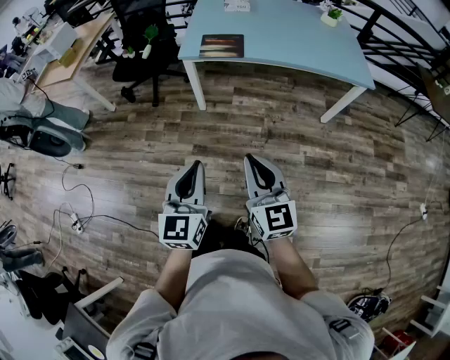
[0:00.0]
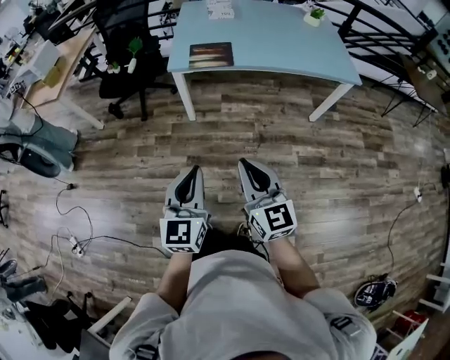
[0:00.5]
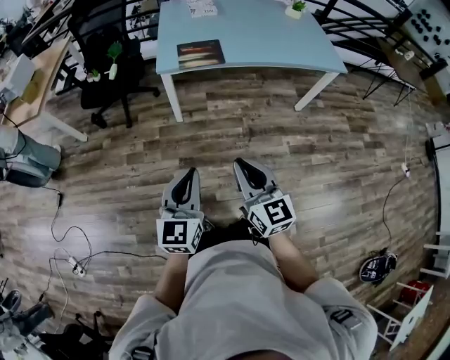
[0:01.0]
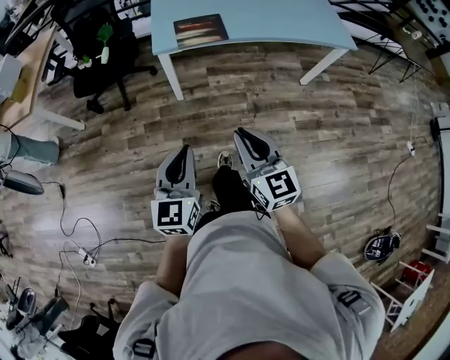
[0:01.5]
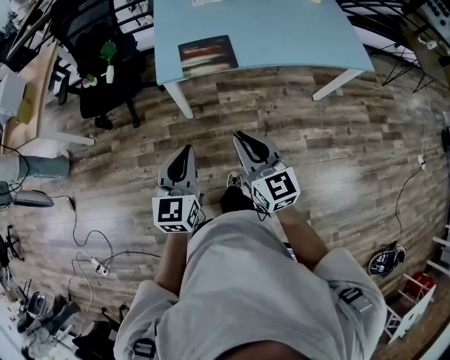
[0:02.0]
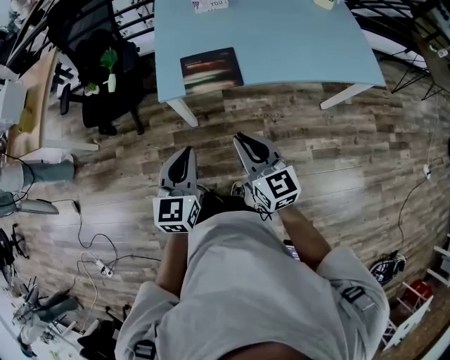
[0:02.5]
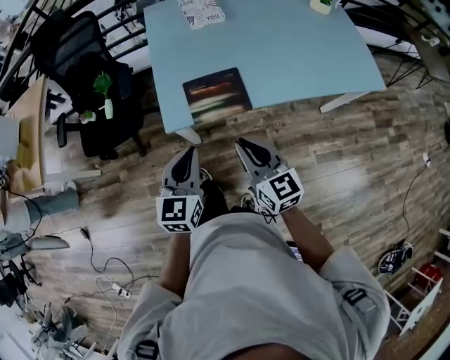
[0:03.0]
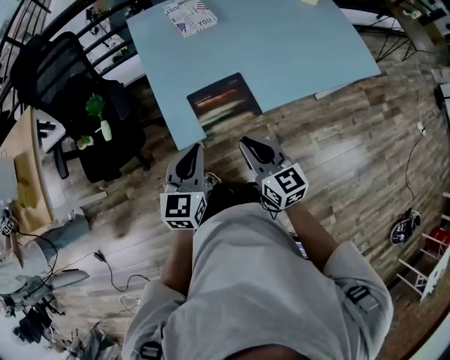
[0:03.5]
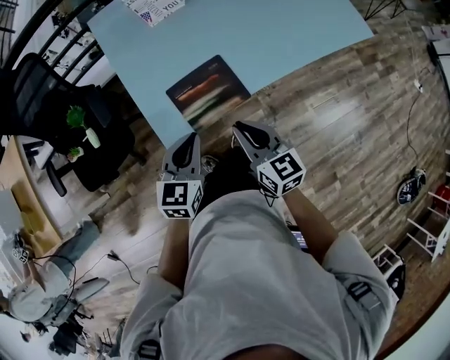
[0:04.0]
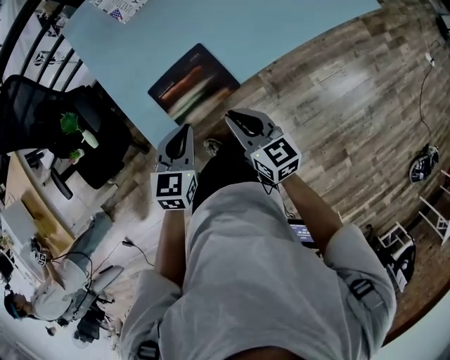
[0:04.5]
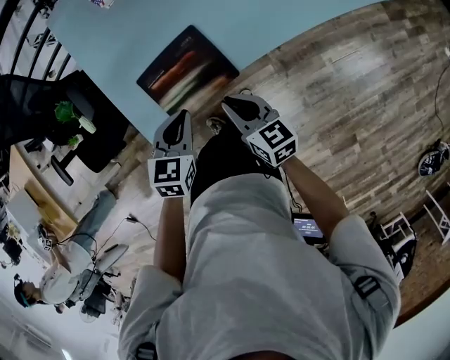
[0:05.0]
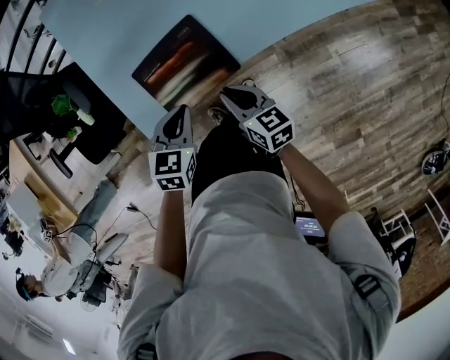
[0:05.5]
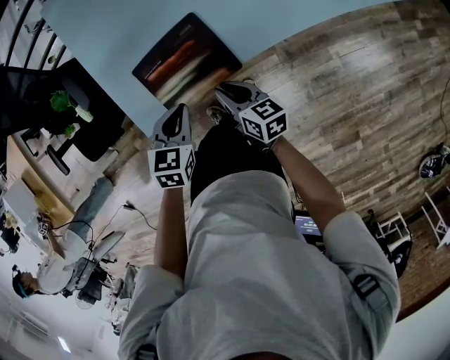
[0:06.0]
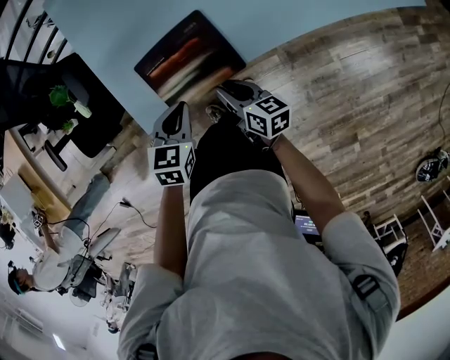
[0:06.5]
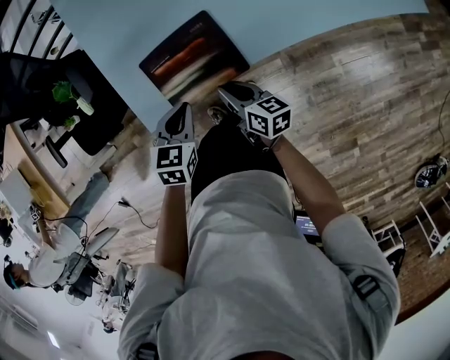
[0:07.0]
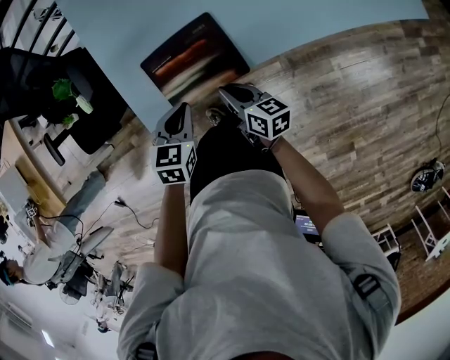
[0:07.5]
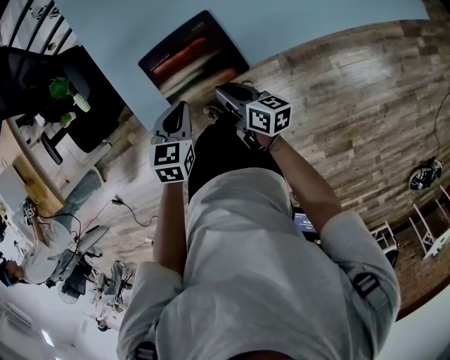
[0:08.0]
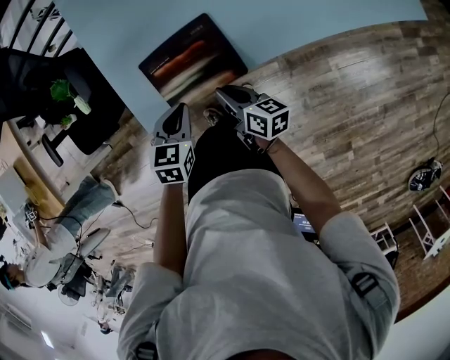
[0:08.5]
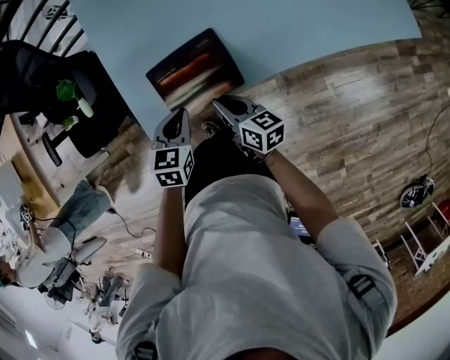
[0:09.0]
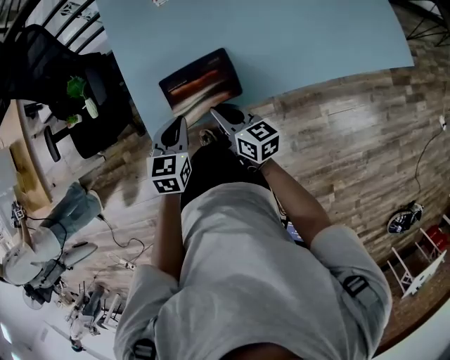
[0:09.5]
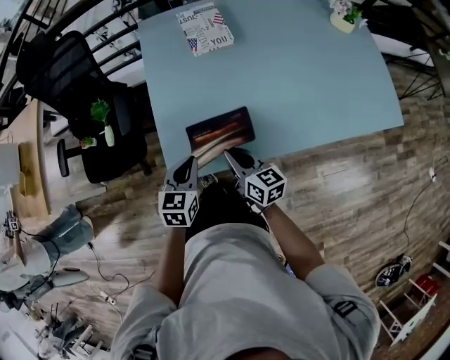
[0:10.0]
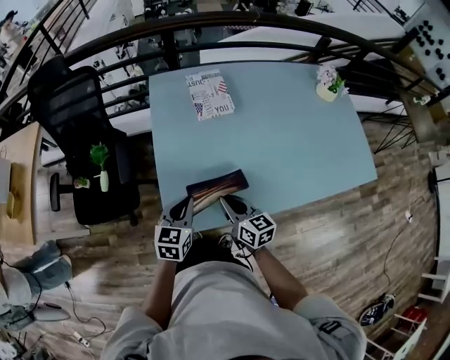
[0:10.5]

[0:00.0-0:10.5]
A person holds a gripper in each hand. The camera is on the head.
0:00.0 to 0:02.0: Both grippers move forward, approximately 30 cm.
0:02.0 to 0:04.0: Both grippers travel together forward, roughly 30 cm. The right gripper swivels roughly 20 degrees; the left gripper rotates approximately 30 degrees.
0:04.0 to 0:06.5: Both grippers travel together downward, approximately 20 cm. The right gripper swivels approximately 30 degrees; the left gripper changes its angle by about 20 degrees.
0:06.5 to 0:08.5: There are only small adjustments of the grippers.
0:08.5 to 0:10.5: The grippers both shift upward and forward by roughly 15 cm. The left gripper changes its angle by approximately 20 degrees. The right gripper swivels some 30 degrees.

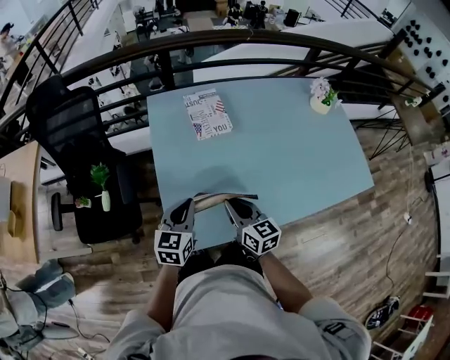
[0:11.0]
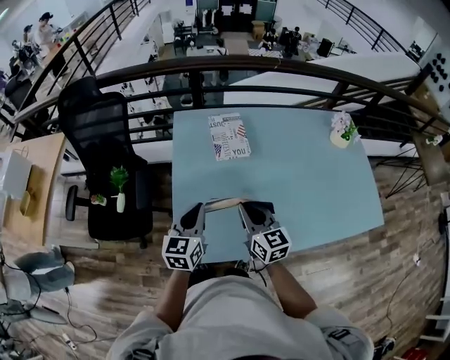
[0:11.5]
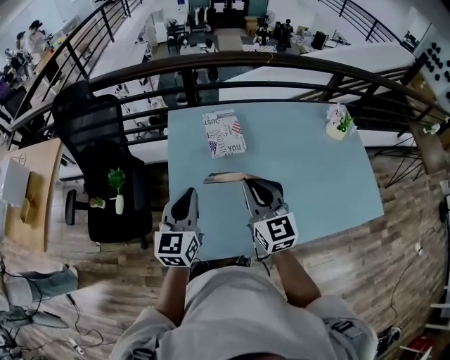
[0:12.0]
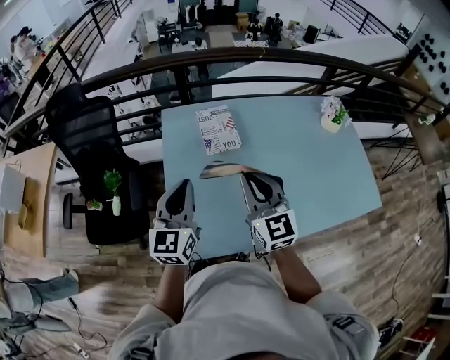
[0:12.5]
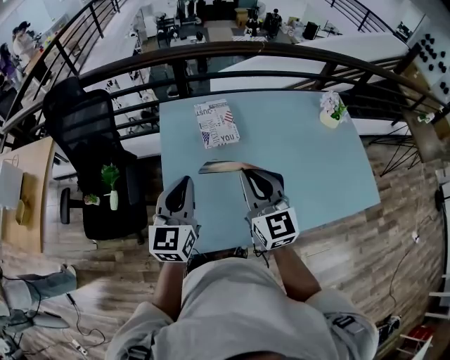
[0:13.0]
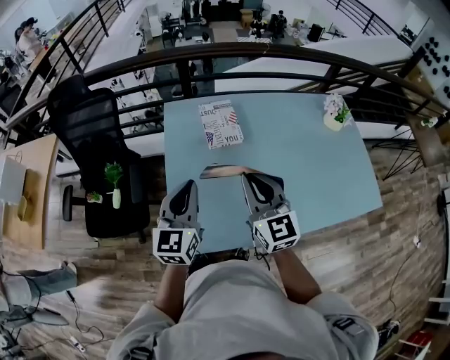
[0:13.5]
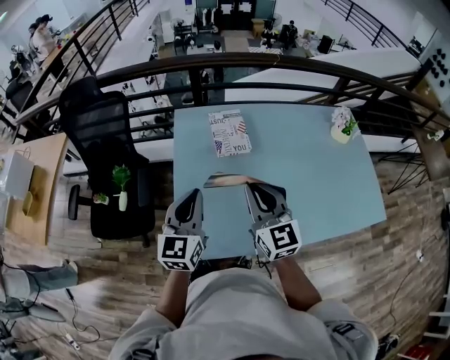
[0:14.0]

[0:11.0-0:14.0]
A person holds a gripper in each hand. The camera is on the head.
0:11.0 to 0:12.5: The two grippers go some 15 cm upward. The left gripper changes its angle by roughly 20 degrees. Meanwhile the right gripper swivels some 30 degrees.
0:12.5 to 0:14.0: There are only small adjustments of the grippers.

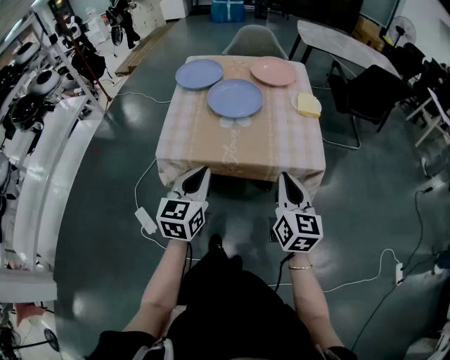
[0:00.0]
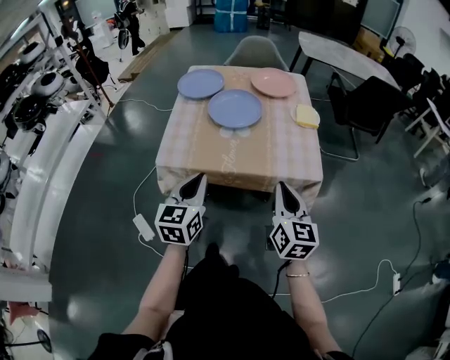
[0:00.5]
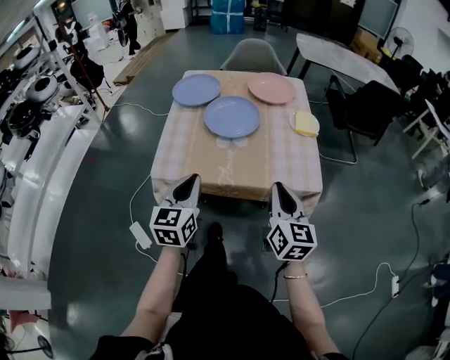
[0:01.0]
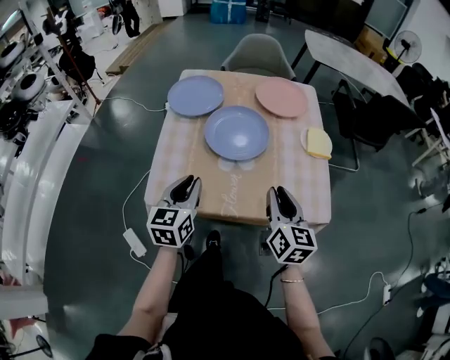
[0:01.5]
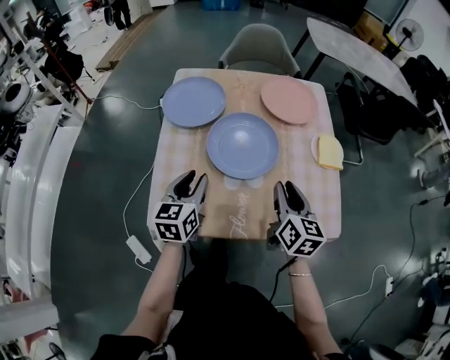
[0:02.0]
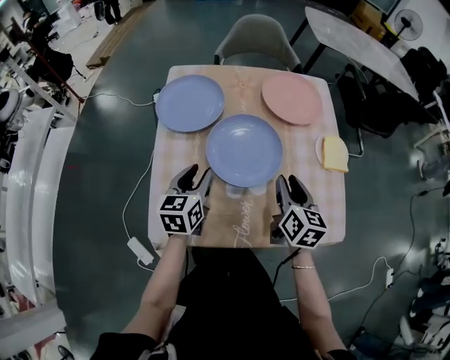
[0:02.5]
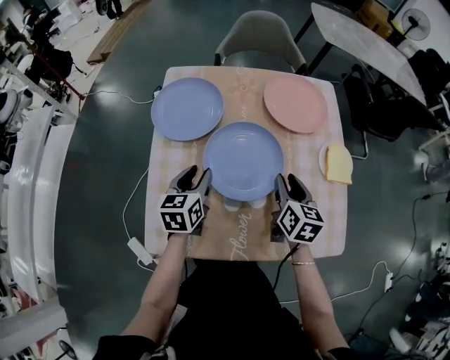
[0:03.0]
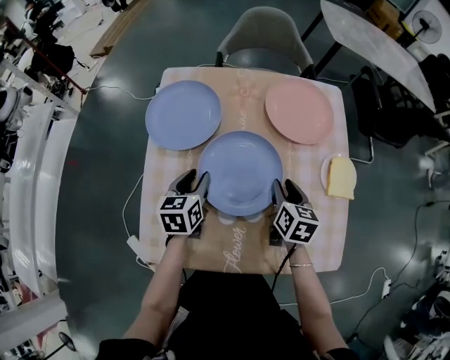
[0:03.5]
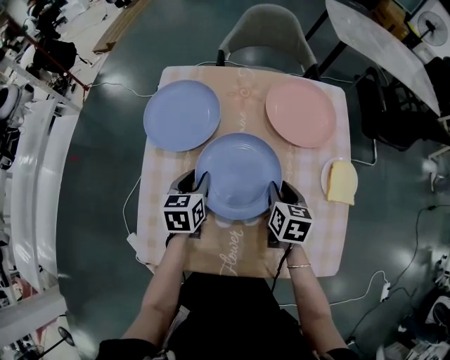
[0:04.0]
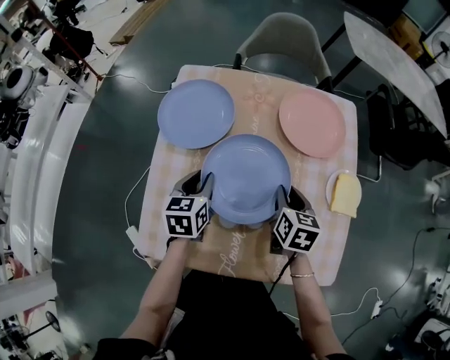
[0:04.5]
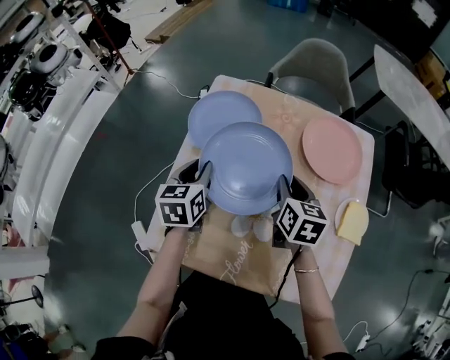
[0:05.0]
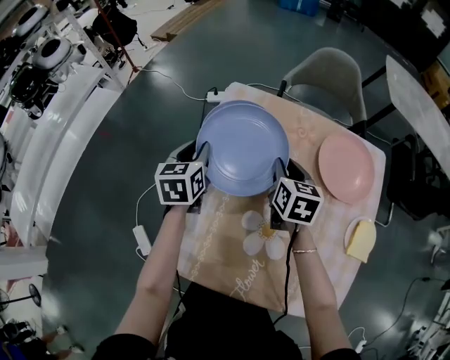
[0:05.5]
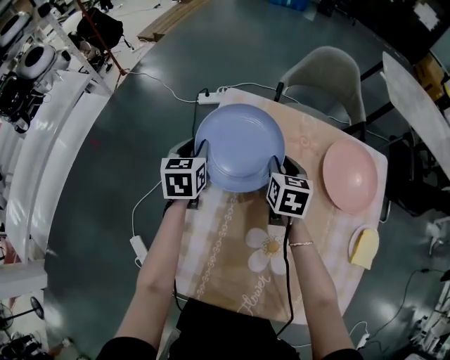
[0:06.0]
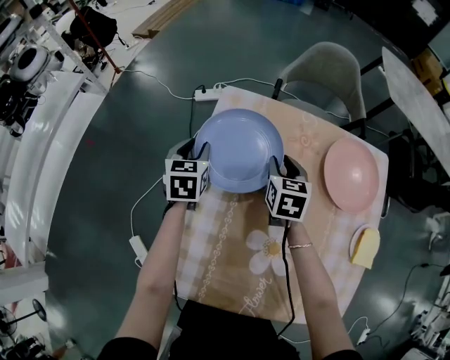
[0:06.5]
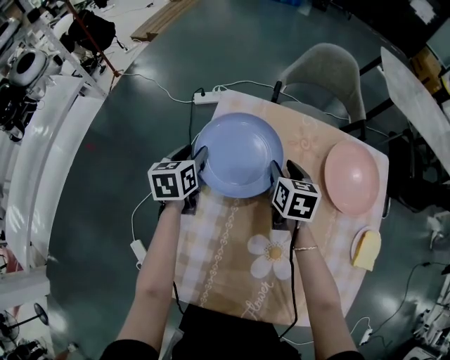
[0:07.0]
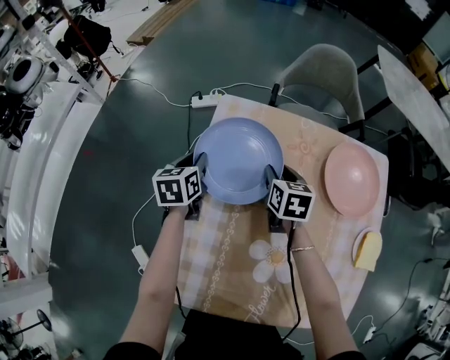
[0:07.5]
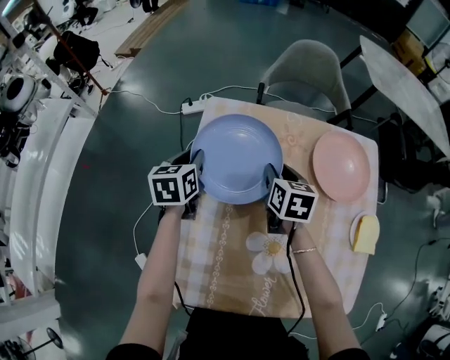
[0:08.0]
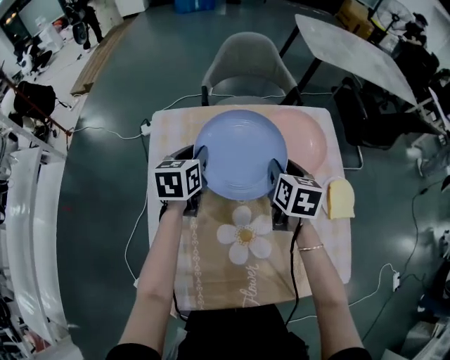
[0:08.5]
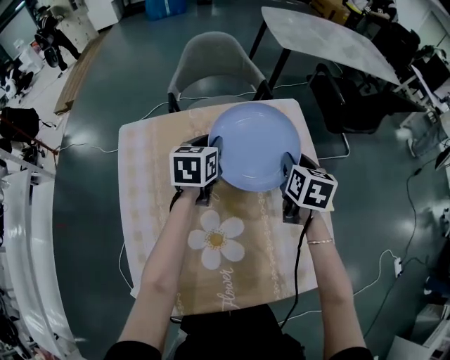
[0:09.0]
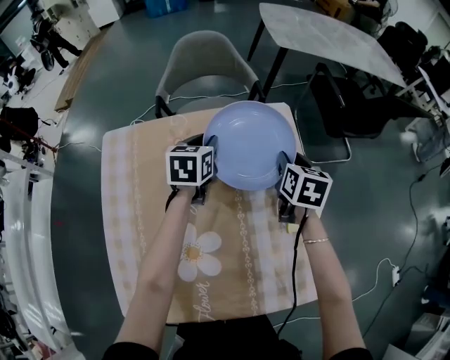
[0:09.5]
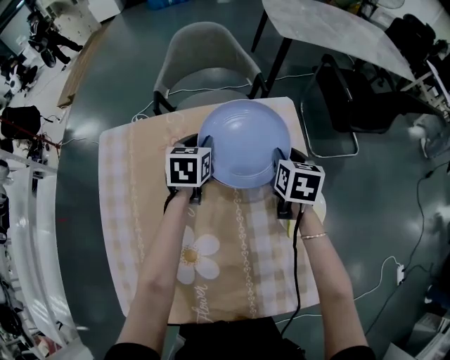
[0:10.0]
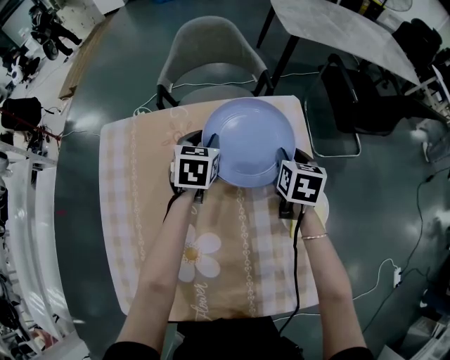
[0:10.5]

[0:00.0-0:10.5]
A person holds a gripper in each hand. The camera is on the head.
0:00.0 to 0:02.0: Both grippers move forward, approximately 25 cm. The right gripper opens its fingers. The left gripper opens its fingers.
0:02.0 to 0:04.0: The grippers both shift forward and downward by some 20 cm. The right gripper changes its angle by roughly 20 degrees.
0:04.0 to 0:06.5: Both grippers travel together forward and to the left, approximately 25 cm.
0:06.5 to 0:08.5: Both grippers travel together to the right, approximately 15 cm. The right gripper turns by some 20 degrees. The left gripper changes its angle by some 30 degrees.
0:08.5 to 0:10.5: Both grippers travel together to the right and forward, about 25 cm.

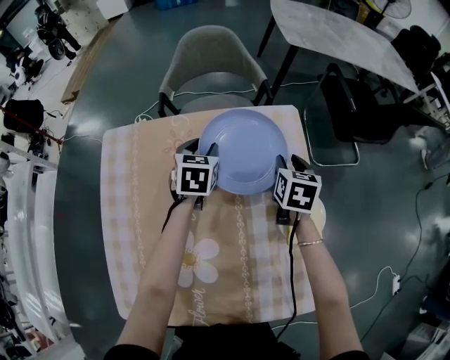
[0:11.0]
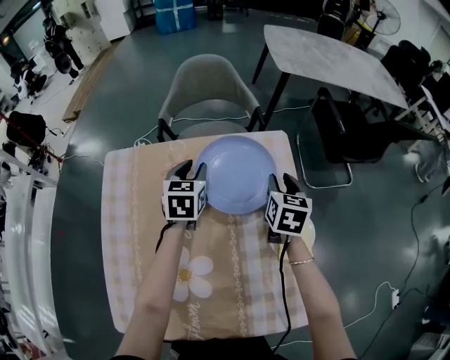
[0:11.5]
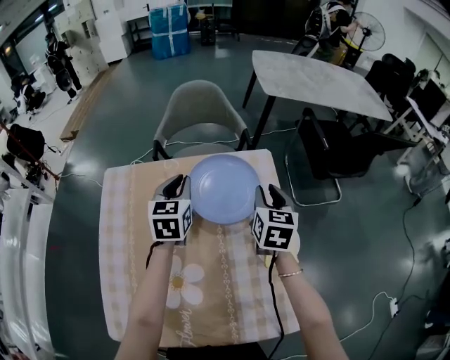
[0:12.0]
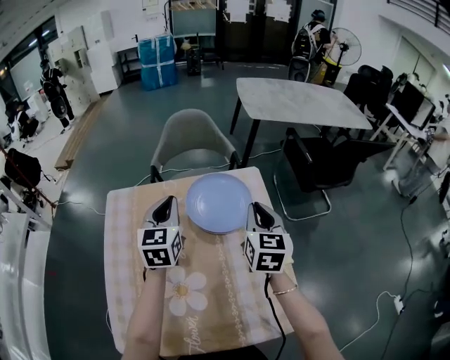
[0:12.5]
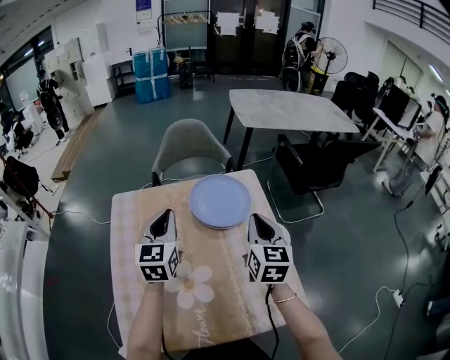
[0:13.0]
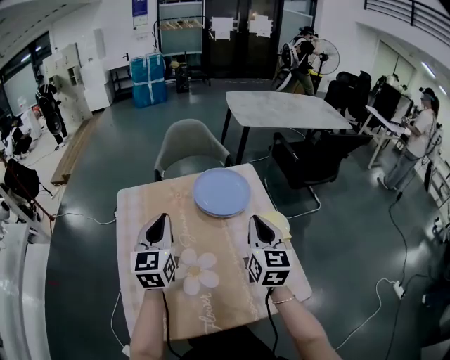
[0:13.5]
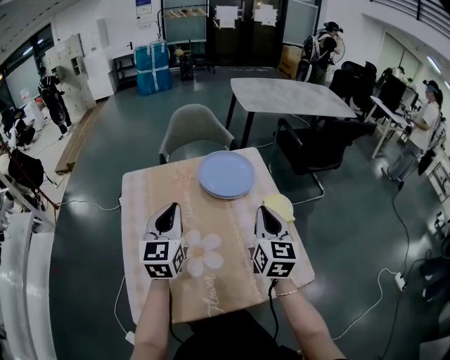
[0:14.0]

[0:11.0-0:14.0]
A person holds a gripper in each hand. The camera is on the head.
0:11.0 to 0:12.5: Both grippers travel together upward and backward, some 20 cm. The left gripper changes its angle by roughly 30 degrees, and closes its fingers, while the right gripper swivels about 20 degrees, and closes up.
0:12.5 to 0:14.0: The two grippers go approximately 20 cm backward.
